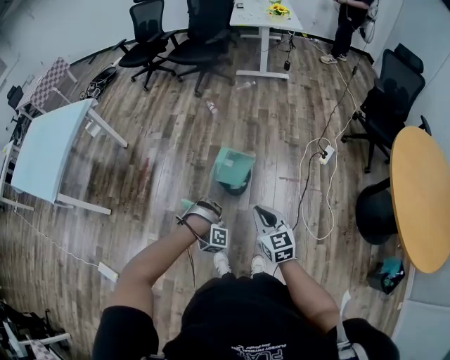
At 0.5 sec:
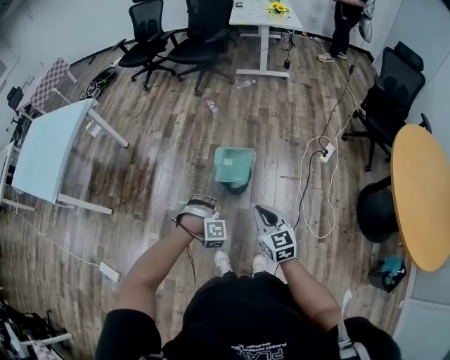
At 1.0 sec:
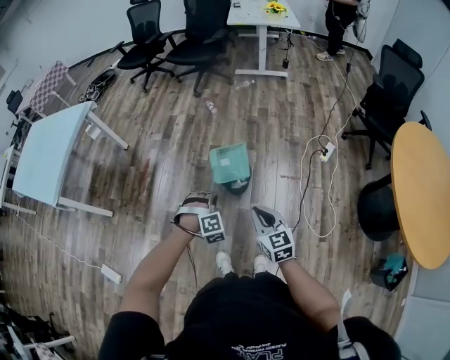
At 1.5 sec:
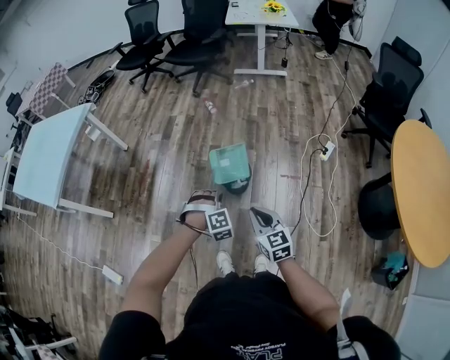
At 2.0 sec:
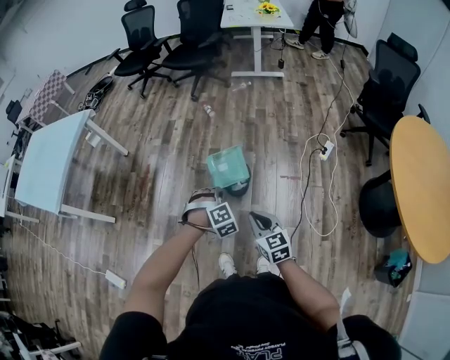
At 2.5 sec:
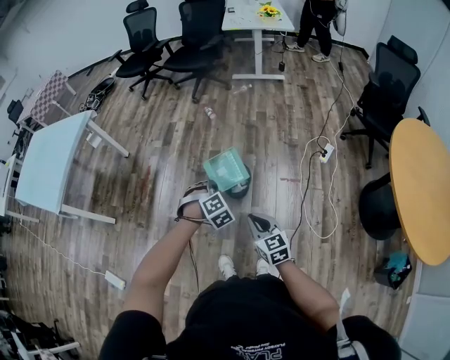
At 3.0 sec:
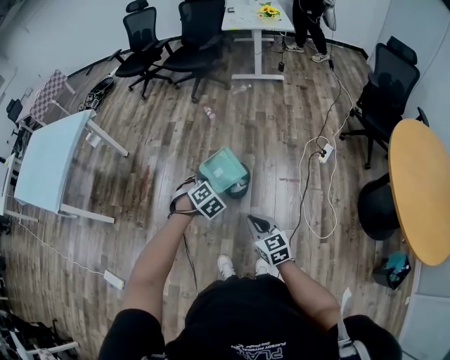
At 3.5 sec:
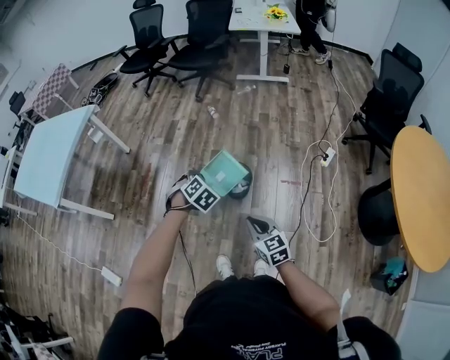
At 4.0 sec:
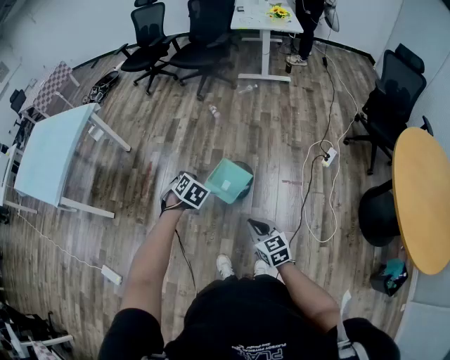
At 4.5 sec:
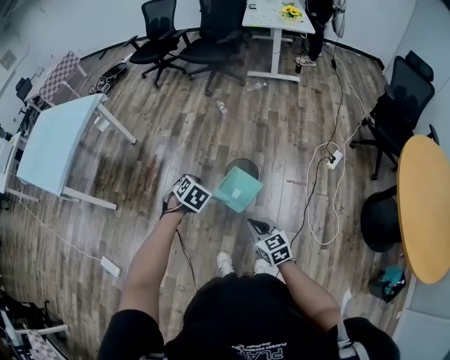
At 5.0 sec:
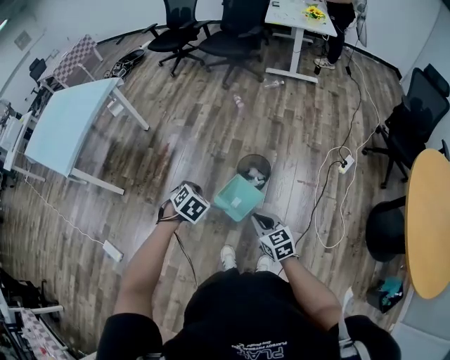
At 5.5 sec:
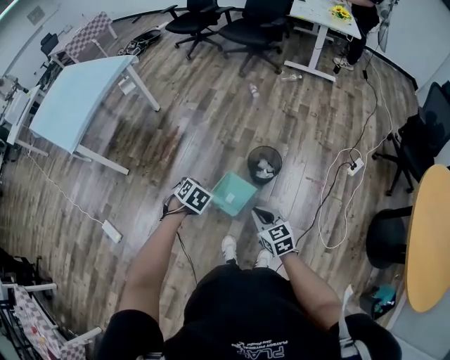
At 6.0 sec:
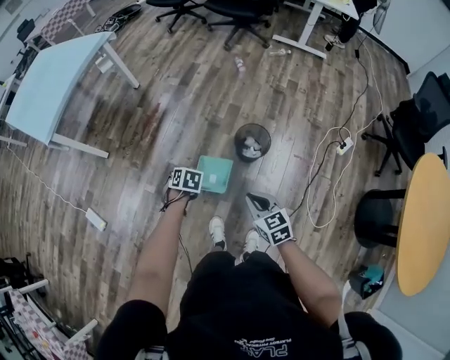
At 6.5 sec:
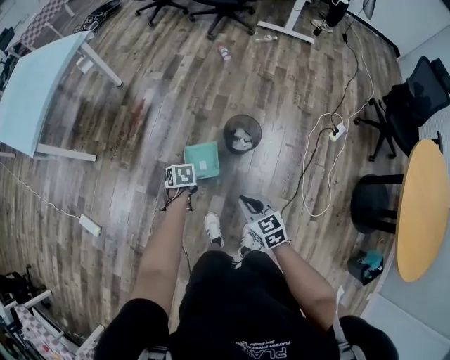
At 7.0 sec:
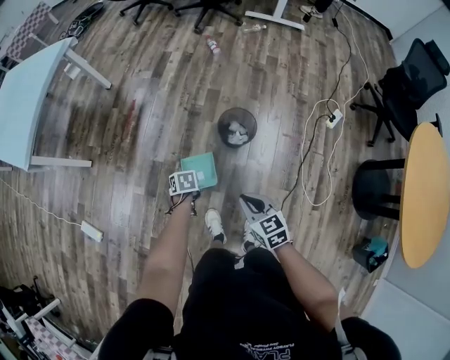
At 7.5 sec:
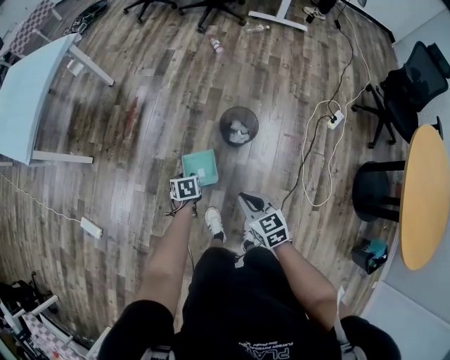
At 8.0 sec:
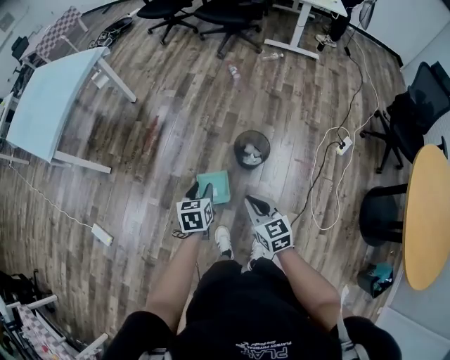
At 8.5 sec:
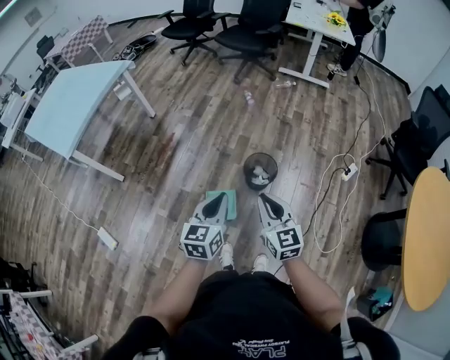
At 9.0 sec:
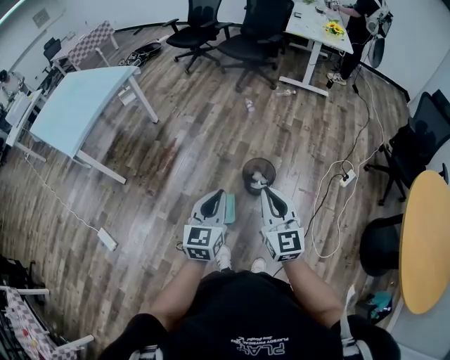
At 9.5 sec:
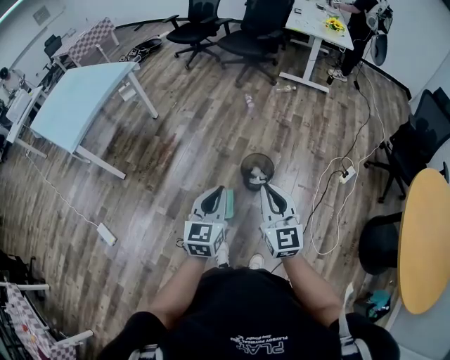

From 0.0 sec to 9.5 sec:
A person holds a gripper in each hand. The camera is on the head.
From 0.0 sec to 2.0 sec: The left gripper heads upward and to the right, covering approximately 10 cm, and rotates around the line of its fingers by some 50 degrees, counterclockwise from behind.
From 2.0 sec to 4.0 sec: The left gripper shifts about 10 cm forward and to the left, and changes its angle by approximately 40 degrees.
From 4.0 sec to 5.5 sec: The left gripper travels to the left and backward by approximately 15 cm. Meanwhile the right gripper is displaced to the left by roughly 10 cm.
From 5.5 sec to 7.5 sec: The left gripper is displaced downward by roughly 20 cm, changes its angle by some 40 degrees, and opens up.
From 7.5 sec to 9.5 sec: The left gripper moves upward, roughly 40 cm, tips its fingers upward by roughly 50 degrees, and closes its fingers. Meanwhile the right gripper moves upward, approximately 25 cm, and tips its fingers upward by roughly 30 degrees.

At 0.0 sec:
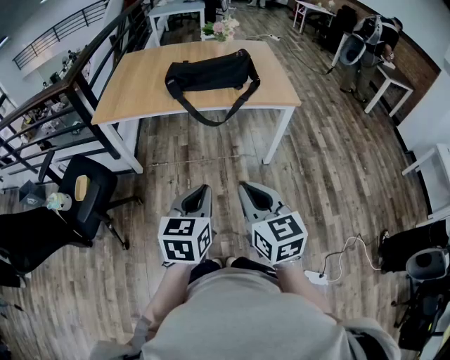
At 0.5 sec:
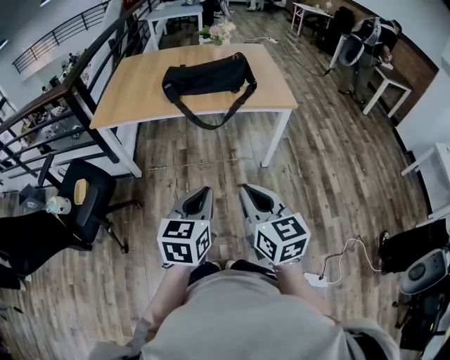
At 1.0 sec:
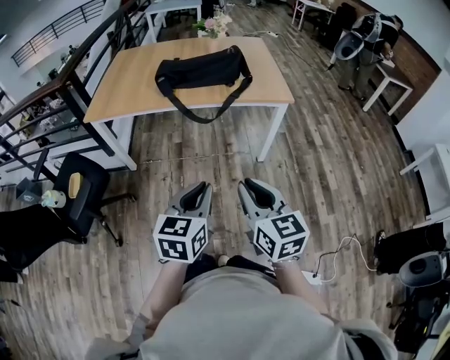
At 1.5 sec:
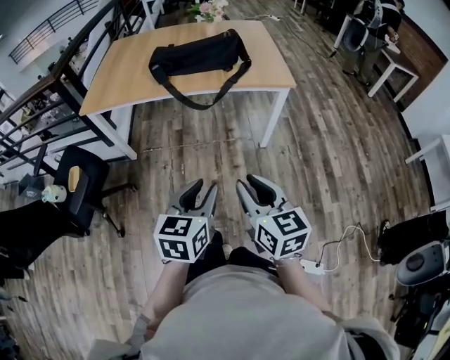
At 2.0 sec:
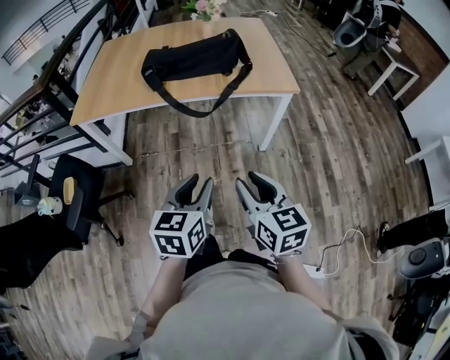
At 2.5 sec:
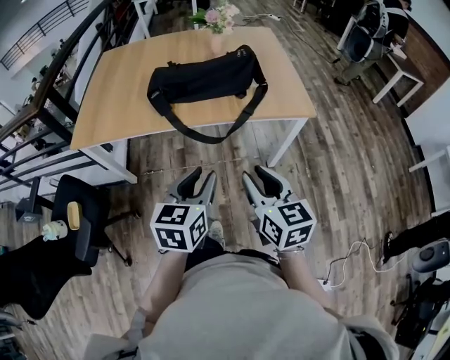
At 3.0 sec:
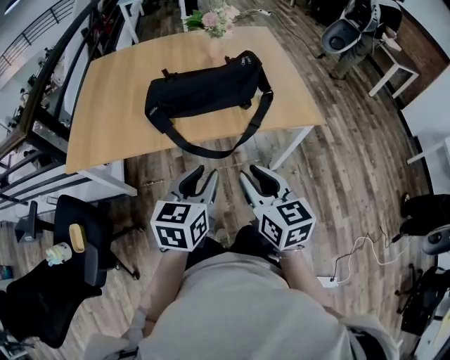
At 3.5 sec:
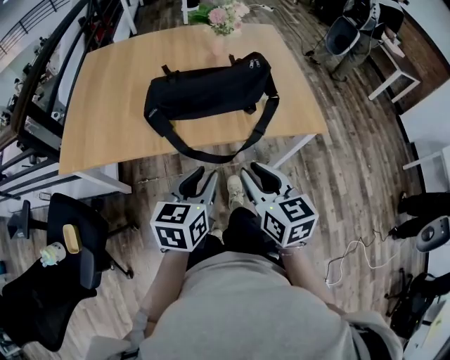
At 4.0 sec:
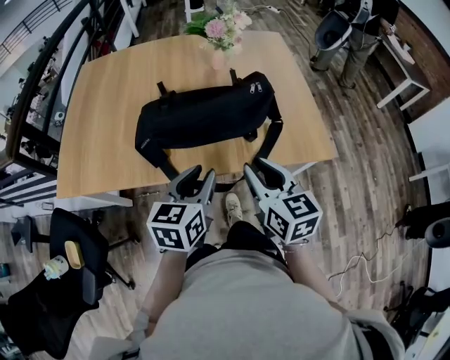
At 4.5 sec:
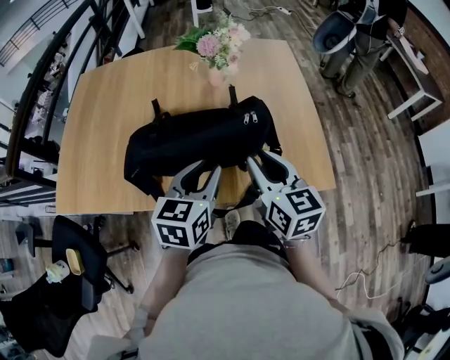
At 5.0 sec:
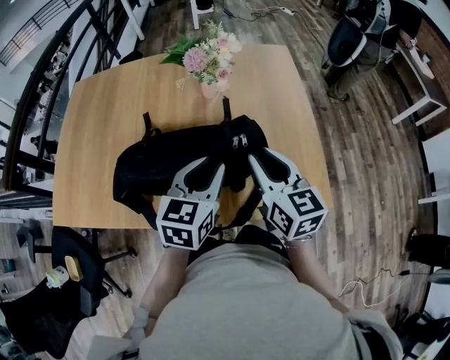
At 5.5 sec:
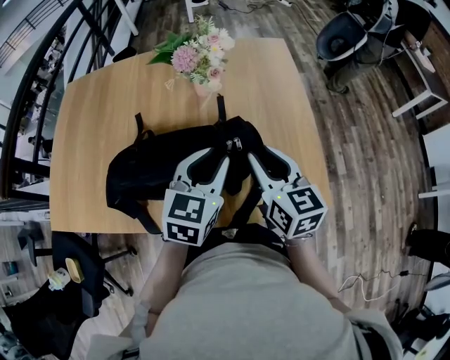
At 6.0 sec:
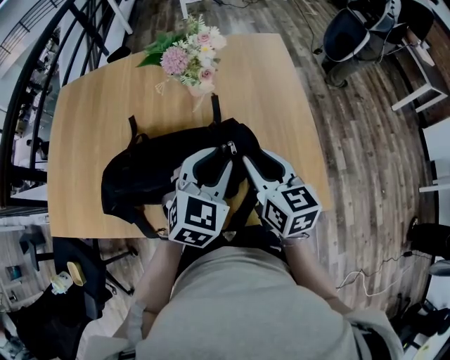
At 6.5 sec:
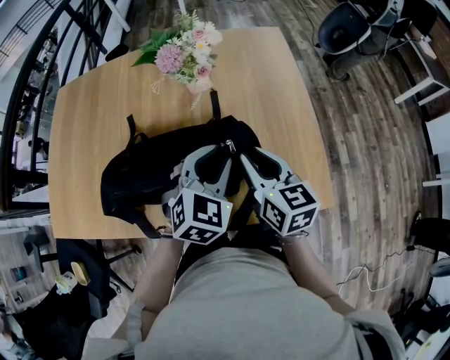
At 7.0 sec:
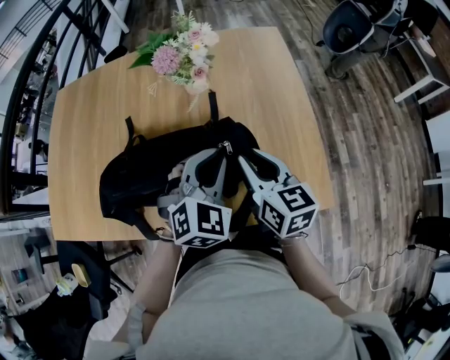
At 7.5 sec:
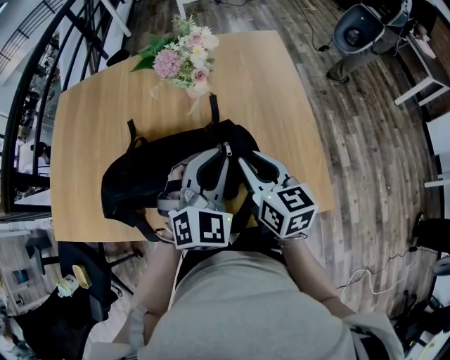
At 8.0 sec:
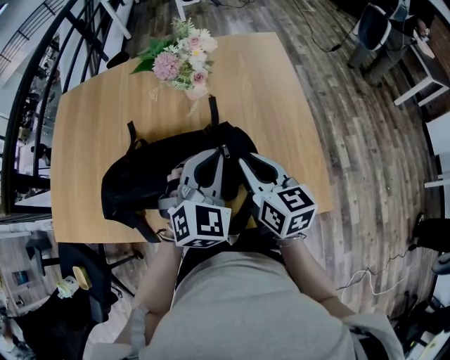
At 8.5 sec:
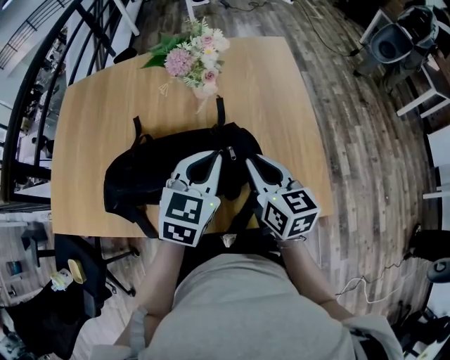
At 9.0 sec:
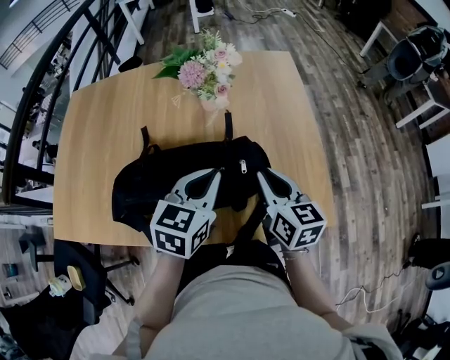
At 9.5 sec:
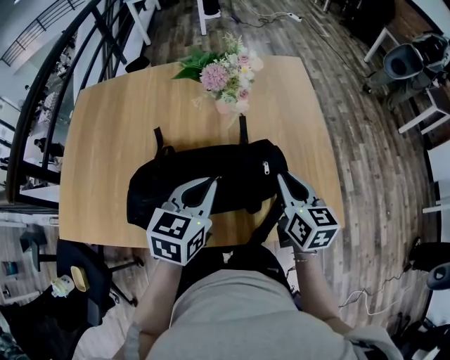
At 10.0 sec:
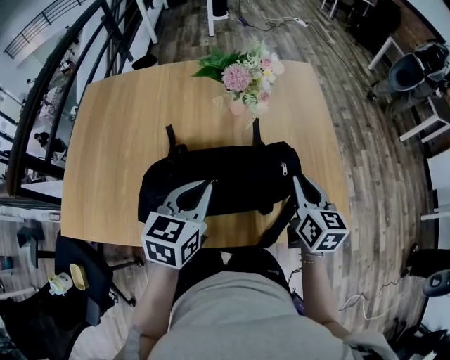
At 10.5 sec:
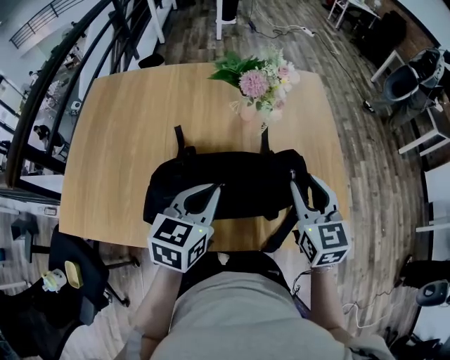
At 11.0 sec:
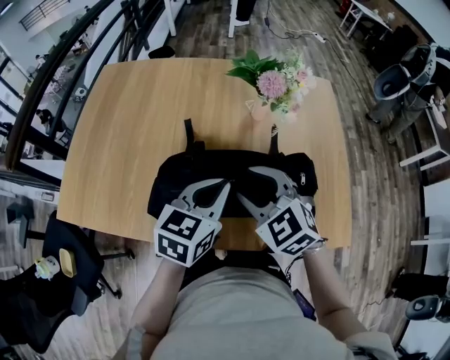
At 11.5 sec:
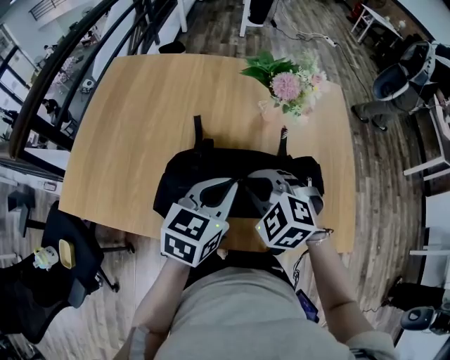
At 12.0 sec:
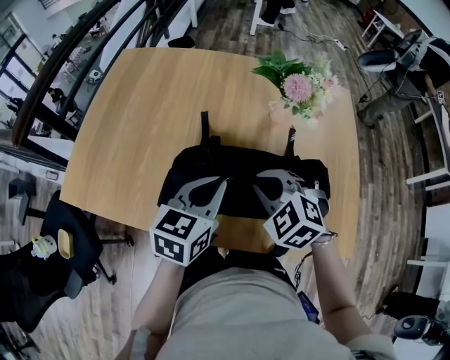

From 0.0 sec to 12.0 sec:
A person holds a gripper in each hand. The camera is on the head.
From 0.0 sec to 2.0 sec: The left gripper moves forward and to the right, about 10 cm, and opens up. The right gripper shifts some 15 cm forward, to the right and downward, and opens.
From 2.0 sec to 4.0 sec: Both grippers travel together forward, roughly 40 cm.
From 4.0 sec to 6.0 sec: The two grippers go some 25 cm forward and to the right. The left gripper changes its angle by roughly 40 degrees.
From 6.0 sec to 8.0 sec: The left gripper closes its fingers.
From 8.0 sec to 10.0 sec: The left gripper goes about 15 cm to the left, and rolls counterclockwise, seen from behind, by roughly 40 degrees.
From 10.0 sec to 12.0 sec: The right gripper goes about 20 cm to the left, twists roughly 70 degrees counterclockwise, seen from behind, and opens, then closes again. Meanwhile the left gripper is displaced to the left by some 5 cm.

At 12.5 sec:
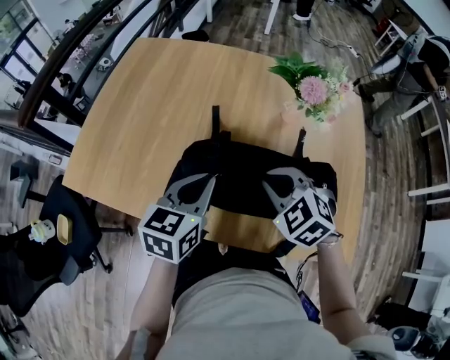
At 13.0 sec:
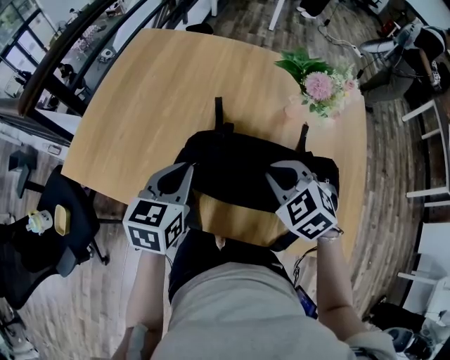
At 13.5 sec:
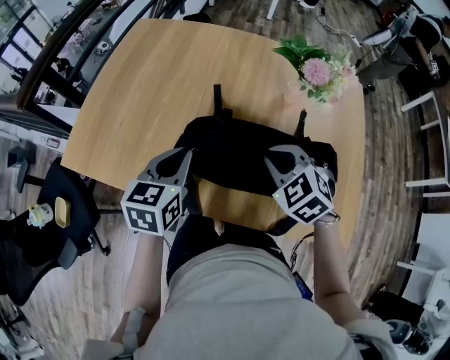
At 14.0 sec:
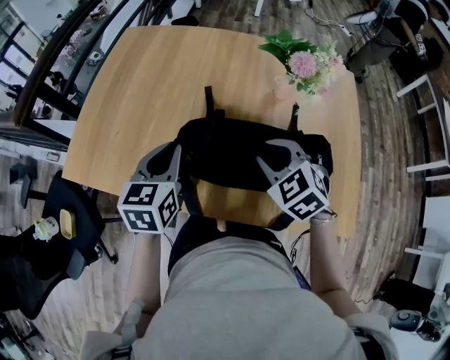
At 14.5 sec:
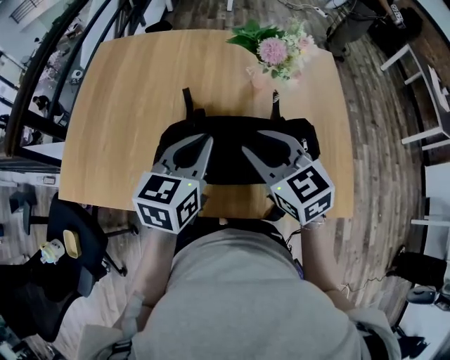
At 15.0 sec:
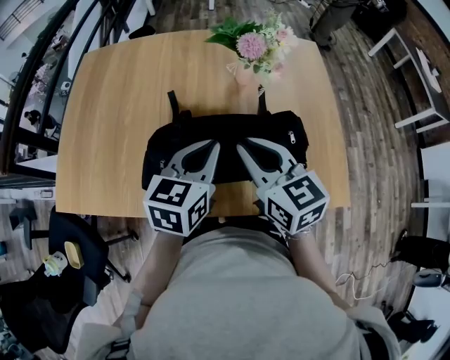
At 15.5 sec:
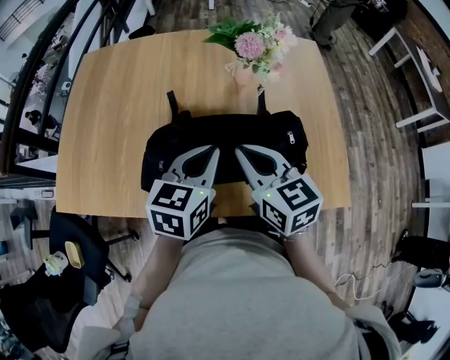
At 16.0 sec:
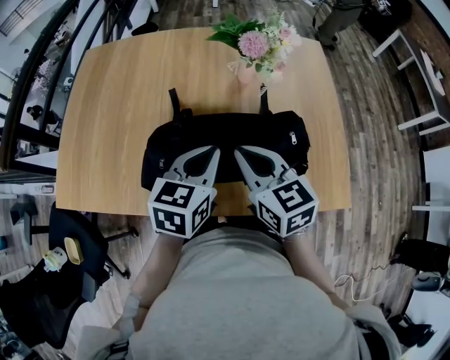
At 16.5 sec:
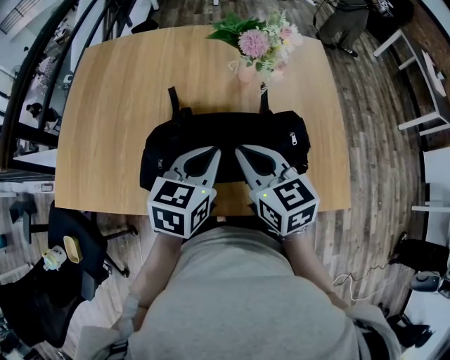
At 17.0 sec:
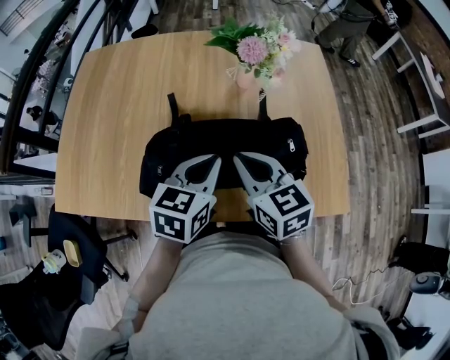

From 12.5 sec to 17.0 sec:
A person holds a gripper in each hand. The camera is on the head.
From 12.5 sec to 14.5 sec: The right gripper heads upward, covering roughly 5 cm, rotates roughly 40 degrees, and opens; the left gripper changes place by approximately 5 cm.
From 14.5 sec to 17.0 sec: The left gripper heads to the right, covering about 5 cm, while the right gripper closes up.
